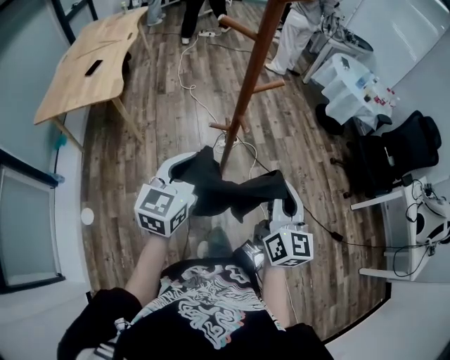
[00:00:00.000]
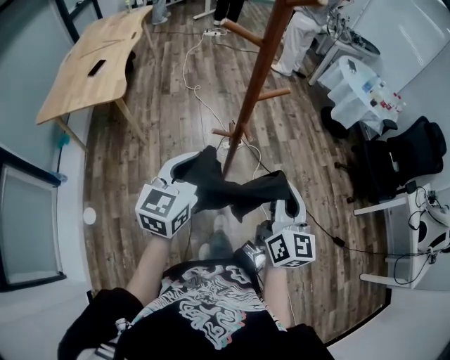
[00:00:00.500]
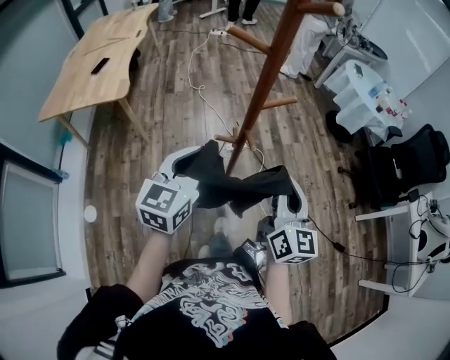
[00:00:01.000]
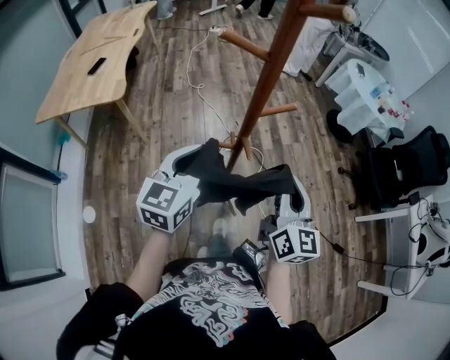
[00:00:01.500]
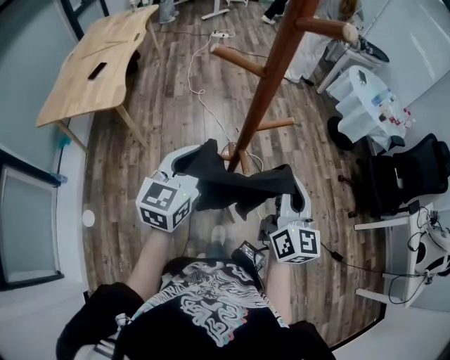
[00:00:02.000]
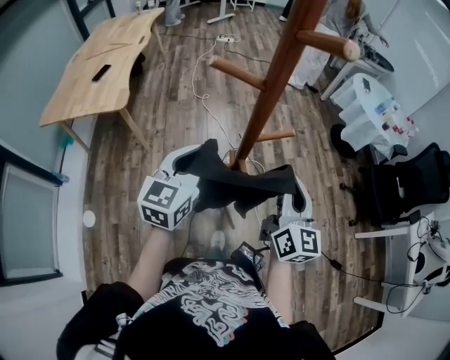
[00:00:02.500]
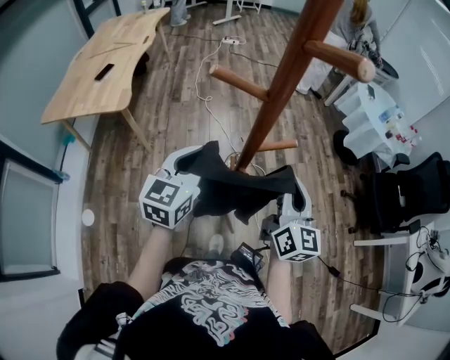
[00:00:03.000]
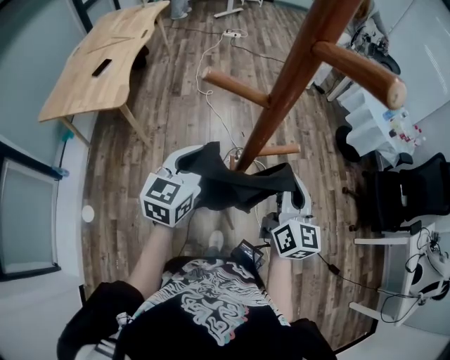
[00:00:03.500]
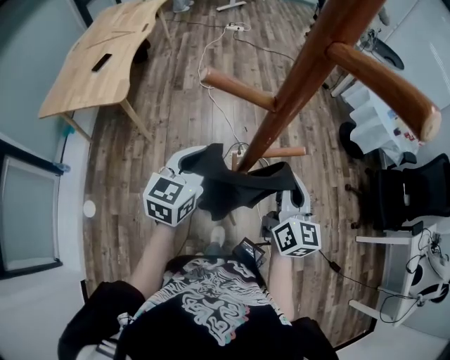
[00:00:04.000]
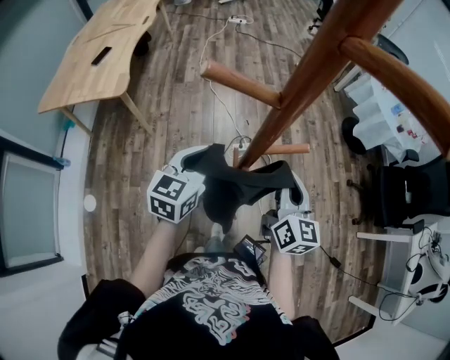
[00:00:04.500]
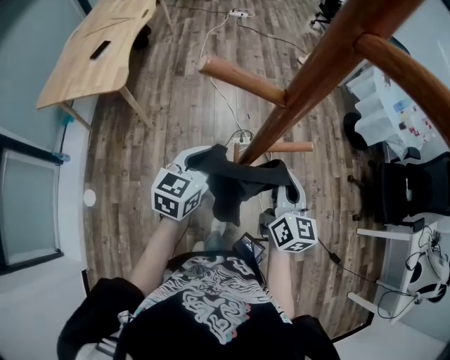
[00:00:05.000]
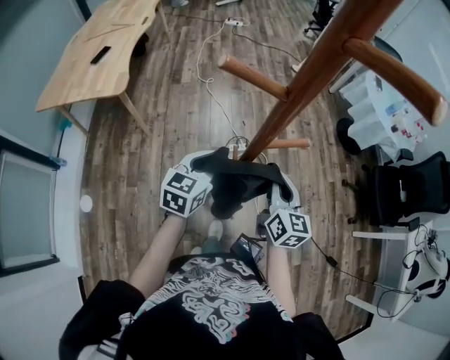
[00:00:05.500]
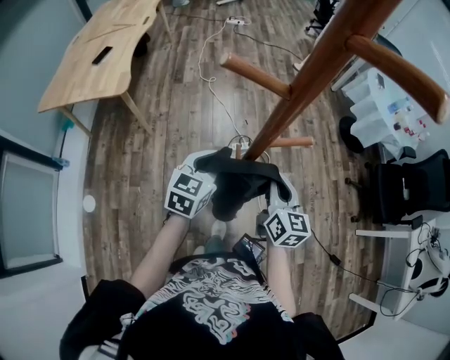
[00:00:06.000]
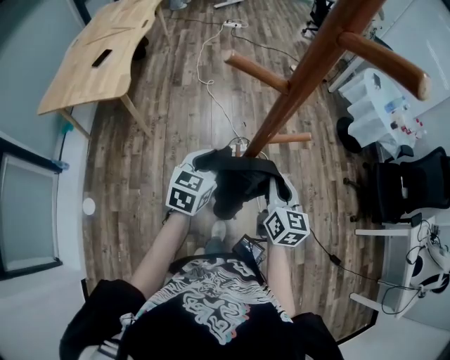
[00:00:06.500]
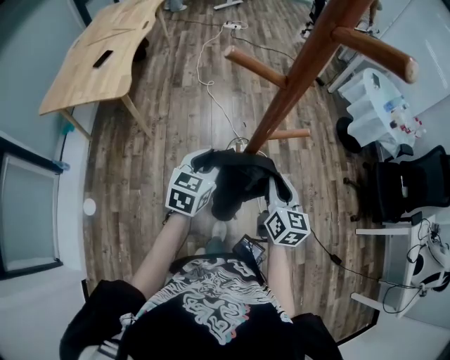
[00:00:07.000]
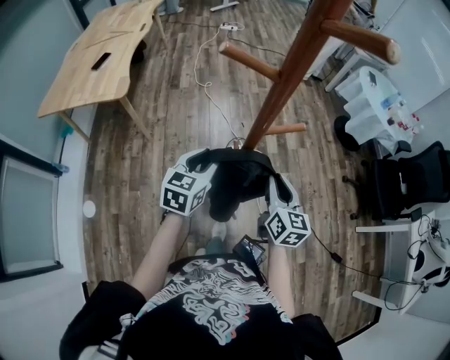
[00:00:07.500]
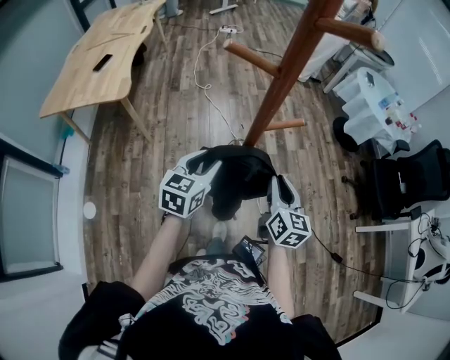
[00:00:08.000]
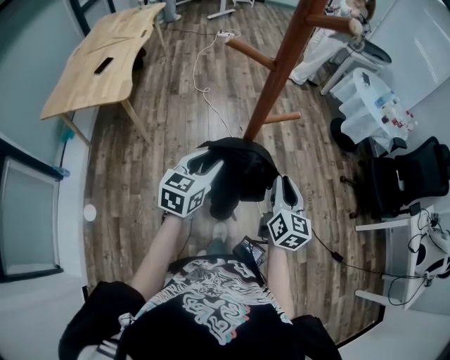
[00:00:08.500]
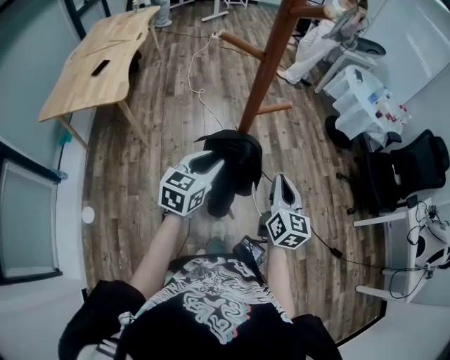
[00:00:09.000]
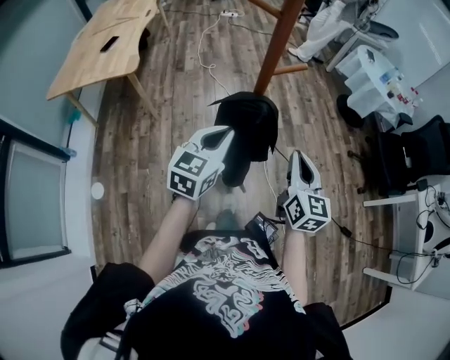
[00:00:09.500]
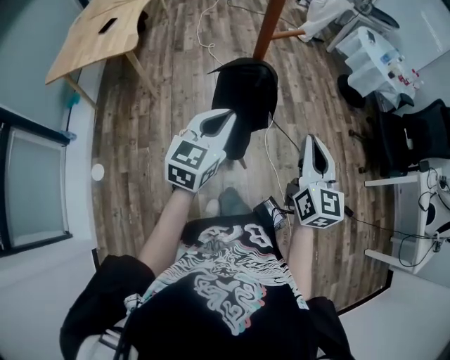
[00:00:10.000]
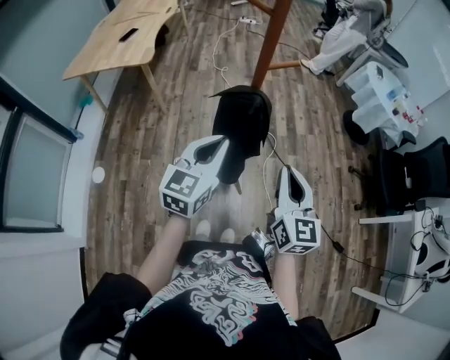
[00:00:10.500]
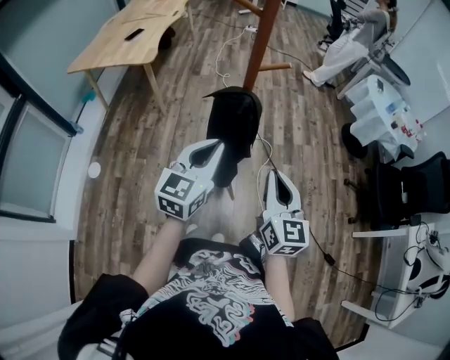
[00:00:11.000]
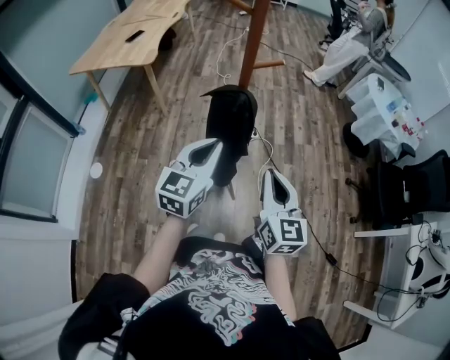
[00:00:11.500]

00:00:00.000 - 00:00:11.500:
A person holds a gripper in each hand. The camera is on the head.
00:00:00.000 - 00:00:02.000: The grippers both shift forward by some 15 cm.
00:00:02.000 - 00:00:04.000: Both grippers travel together forward and downward, some 10 cm.
00:00:04.000 - 00:00:06.000: Both grippers move downward, about 5 cm.
00:00:06.000 - 00:00:07.500: The left gripper opens its fingers.
00:00:07.500 - 00:00:09.500: The grippers both shift backward and upward by some 15 cm. The left gripper closes up.
00:00:09.500 - 00:00:11.500: The left gripper moves backward and to the right, some 10 cm. The right gripper goes approximately 10 cm backward.

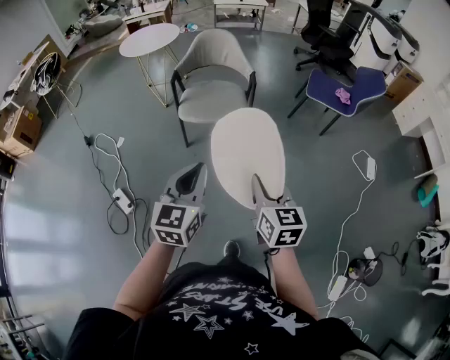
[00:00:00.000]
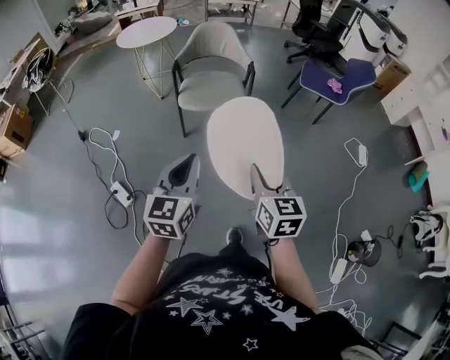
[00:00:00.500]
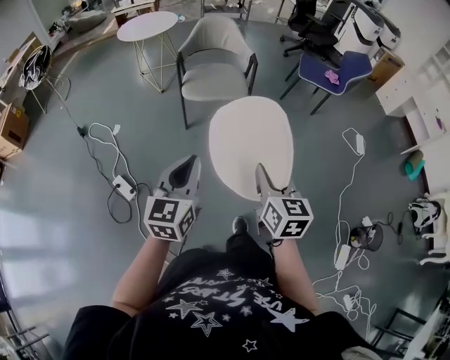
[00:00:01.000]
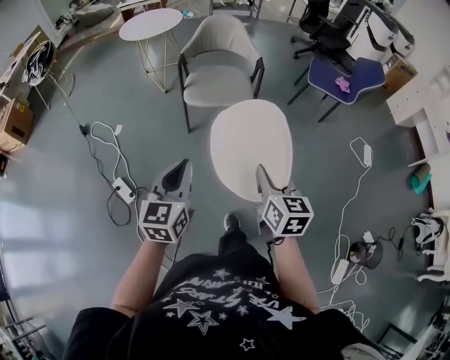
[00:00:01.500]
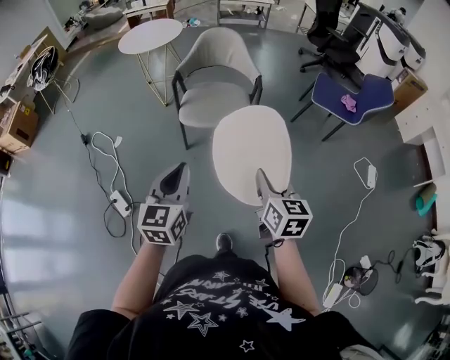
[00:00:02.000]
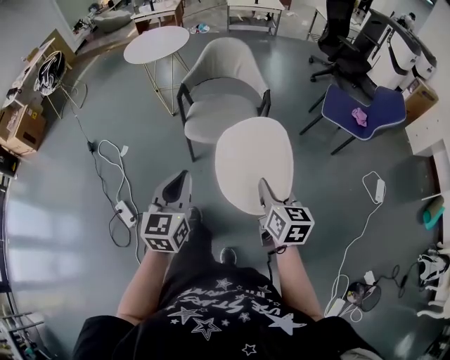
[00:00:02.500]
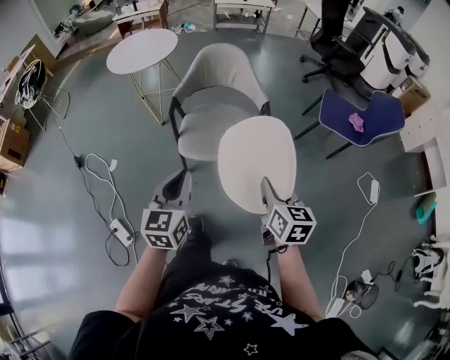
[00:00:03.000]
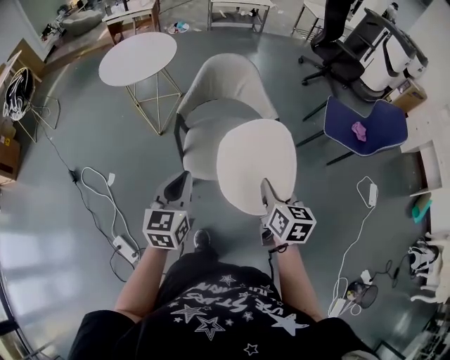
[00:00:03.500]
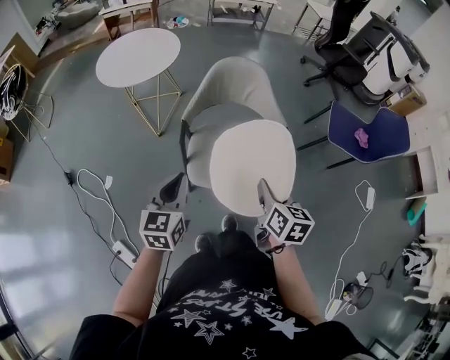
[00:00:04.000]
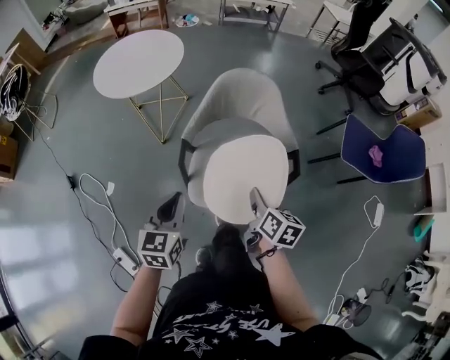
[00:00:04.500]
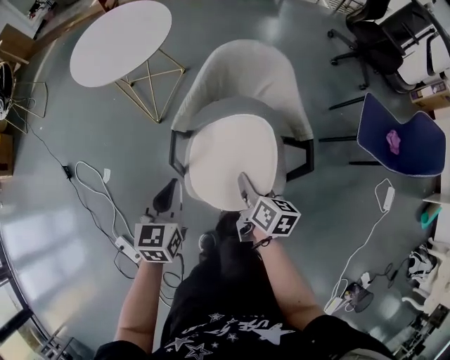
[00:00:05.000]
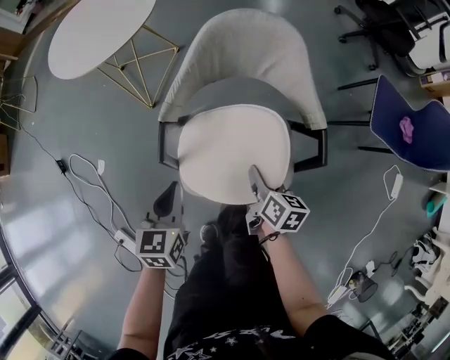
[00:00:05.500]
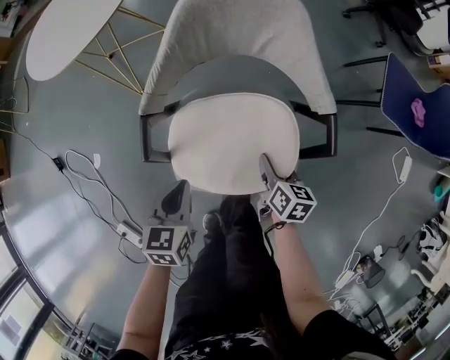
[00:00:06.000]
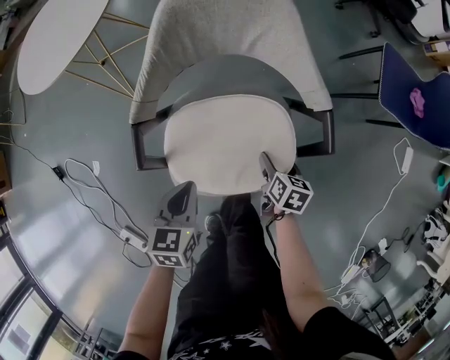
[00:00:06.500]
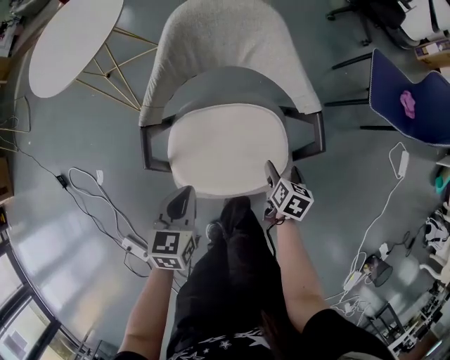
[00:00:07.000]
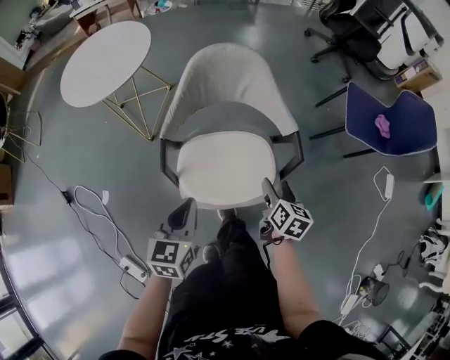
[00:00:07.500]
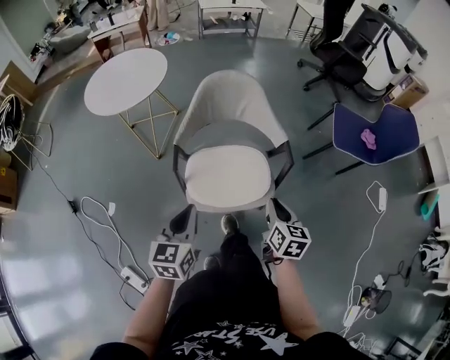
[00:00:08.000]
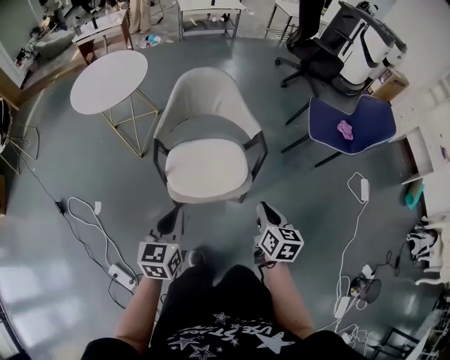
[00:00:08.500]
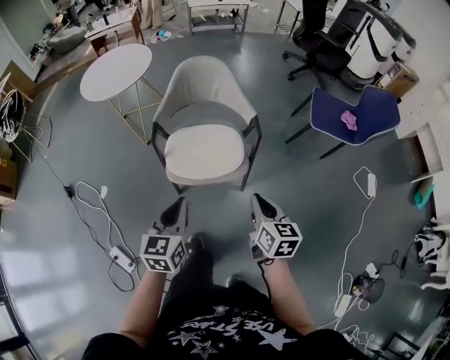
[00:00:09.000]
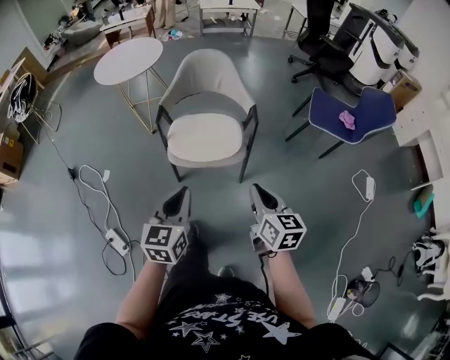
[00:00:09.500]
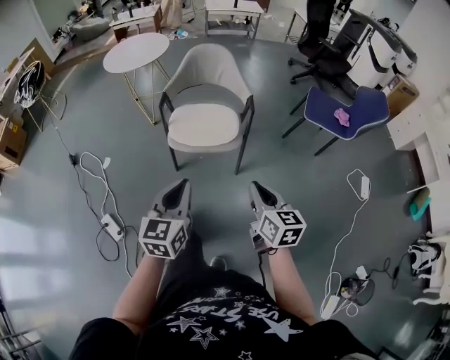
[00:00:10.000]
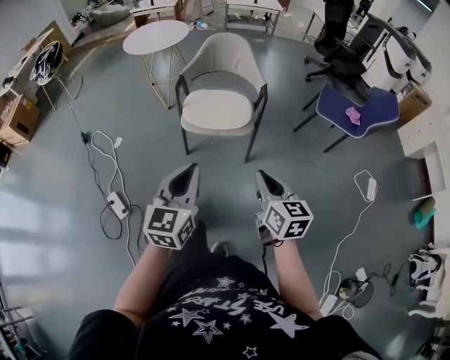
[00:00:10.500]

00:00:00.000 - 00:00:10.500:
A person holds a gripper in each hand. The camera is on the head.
00:00:00.000 - 00:00:02.000: The left gripper goes roughly 10 cm to the left and forward; the right gripper heads forward, covering some 10 cm.
00:00:02.000 - 00:00:04.000: The left gripper is displaced forward and to the left by approximately 40 cm, while the right gripper goes about 35 cm forward.
00:00:04.000 - 00:00:06.500: The grippers both shift downward and forward by some 35 cm. The left gripper changes its angle by about 30 degrees. The right gripper rotates roughly 20 degrees, and opens its fingers.
00:00:06.500 - 00:00:08.500: Both grippers travel together upward and backward, about 30 cm. The right gripper turns by some 20 degrees, and closes its fingers; the left gripper changes its angle by about 20 degrees.
00:00:08.500 - 00:00:10.500: The right gripper shifts roughly 30 cm backward and upward, and changes its angle by about 30 degrees. The left gripper goes some 35 cm backward, upward and to the right.

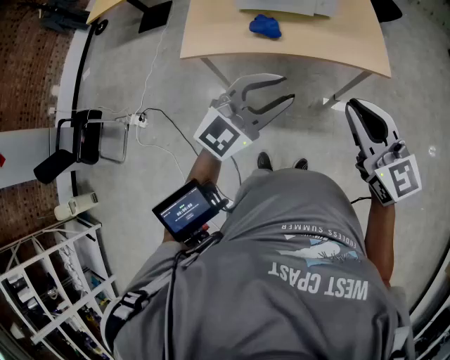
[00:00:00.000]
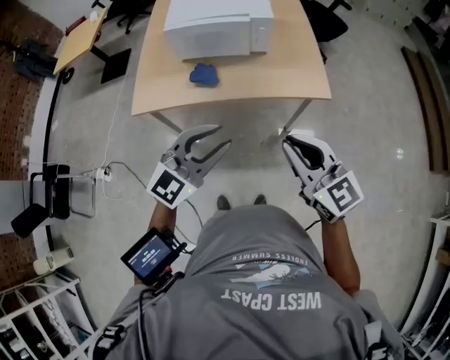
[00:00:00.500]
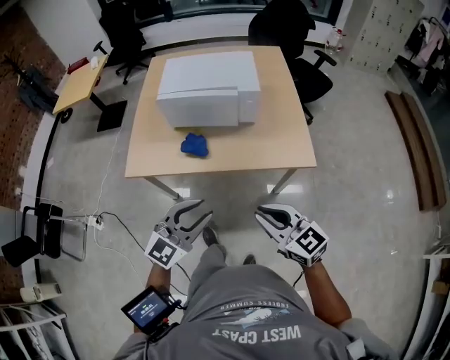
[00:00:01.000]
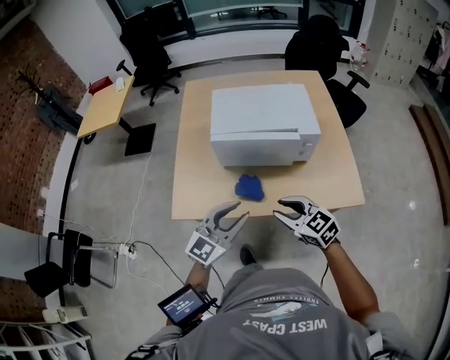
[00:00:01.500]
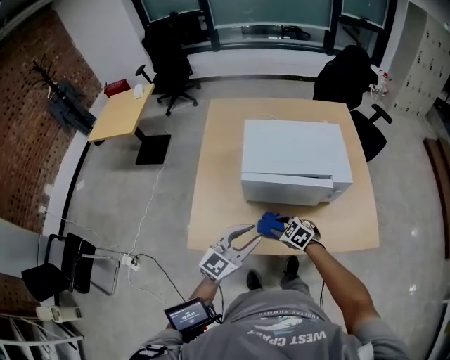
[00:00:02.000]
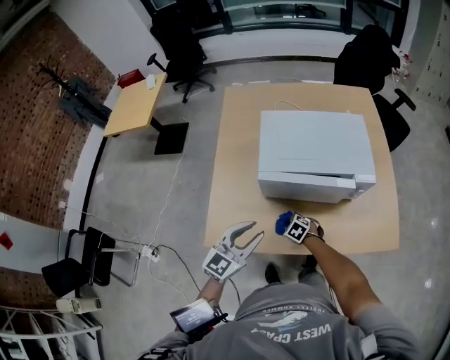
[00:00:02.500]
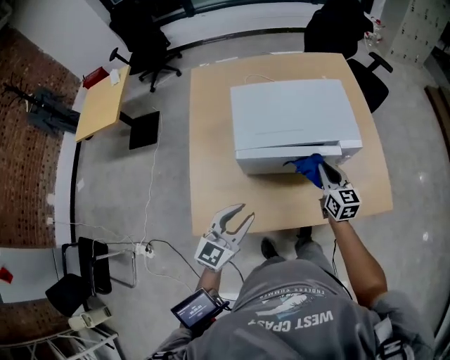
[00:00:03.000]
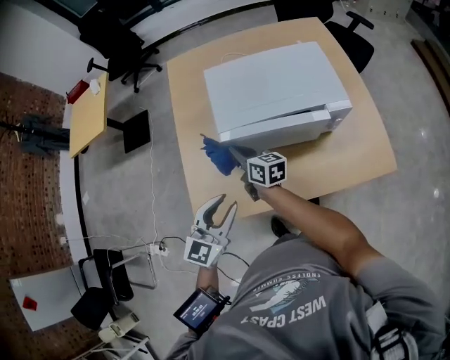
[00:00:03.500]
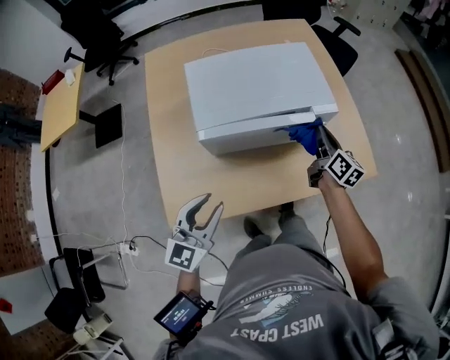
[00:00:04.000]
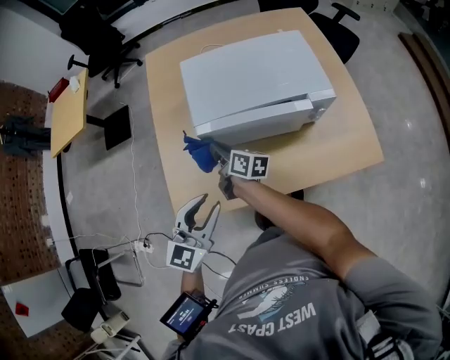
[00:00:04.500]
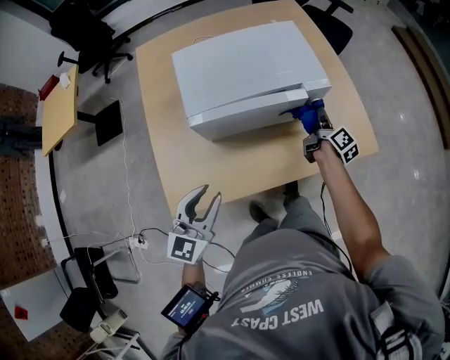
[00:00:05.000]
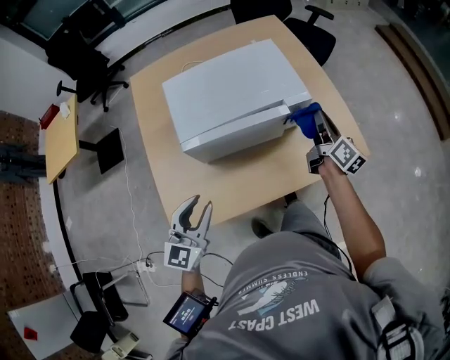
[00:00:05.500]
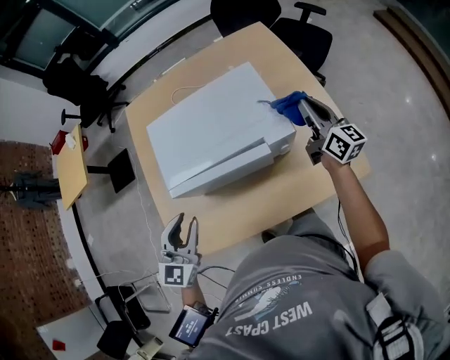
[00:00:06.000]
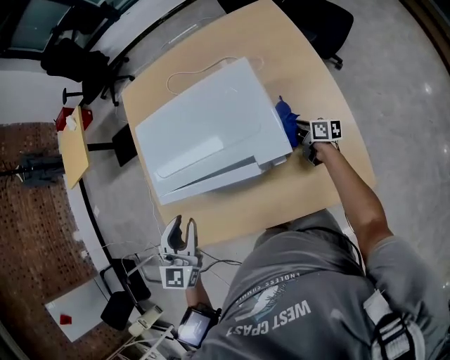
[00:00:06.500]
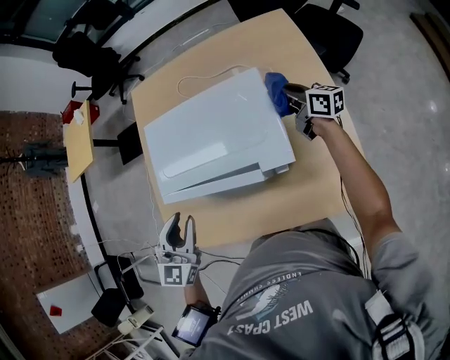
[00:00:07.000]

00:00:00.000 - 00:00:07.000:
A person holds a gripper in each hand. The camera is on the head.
00:00:00.000 - 00:00:02.000: The left gripper moves forward and to the left, about 40 cm. The right gripper is displaced forward, downward and to the left by about 50 cm, tilts its fingers roughly 40 degrees downward, and opens.
00:00:02.000 - 00:00:03.500: The left gripper shifts by about 10 cm. The right gripper goes downward and returns, approximately 15 cm each way, points its fingers some 40 degrees further upward, and closes up.
00:00:03.500 - 00:00:05.000: The right gripper moves roughly 40 cm, and swivels approximately 60 degrees.
00:00:05.000 - 00:00:07.000: The left gripper shifts by about 20 cm, and swivels approximately 20 degrees. Meanwhile the right gripper goes up and down, approximately 30 cm each way, reversing 2 times, and turns by roughly 60 degrees.
